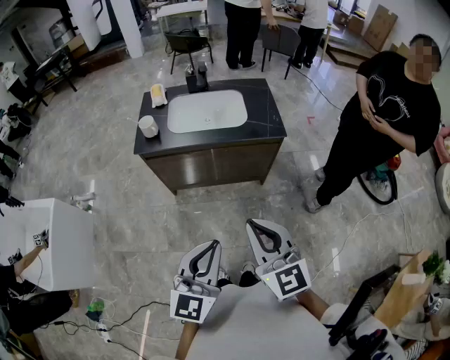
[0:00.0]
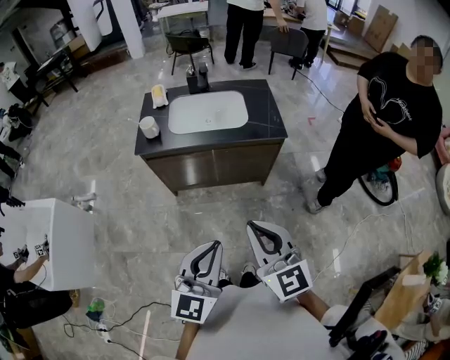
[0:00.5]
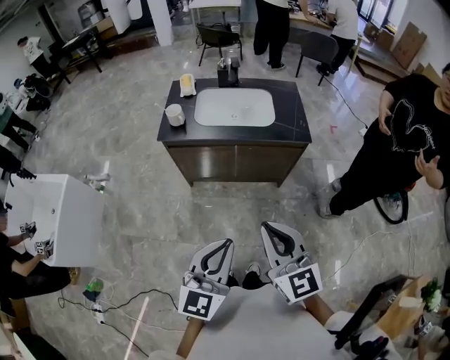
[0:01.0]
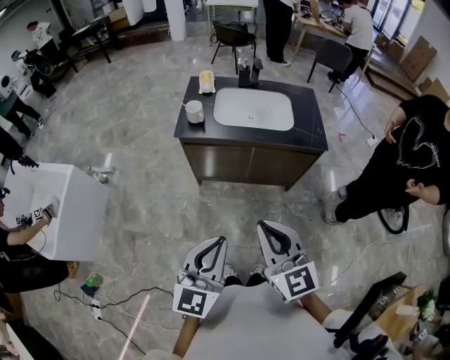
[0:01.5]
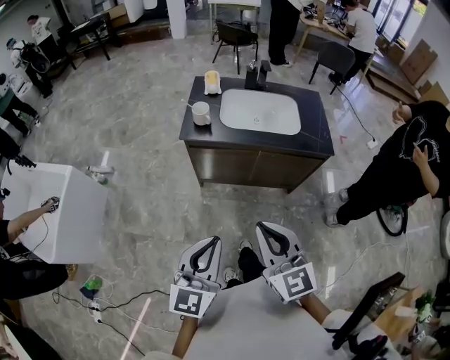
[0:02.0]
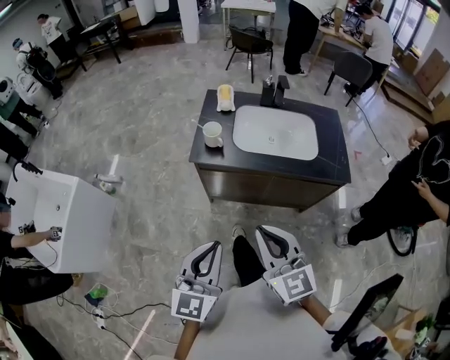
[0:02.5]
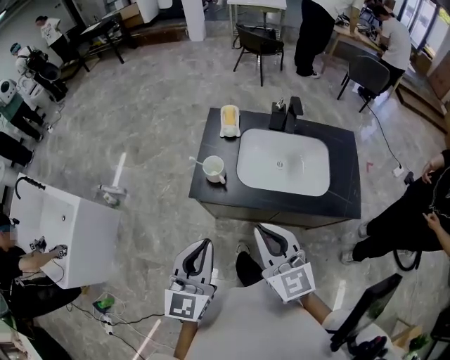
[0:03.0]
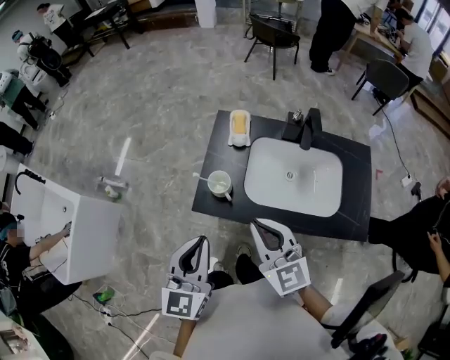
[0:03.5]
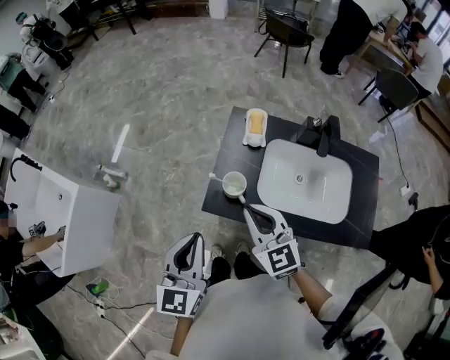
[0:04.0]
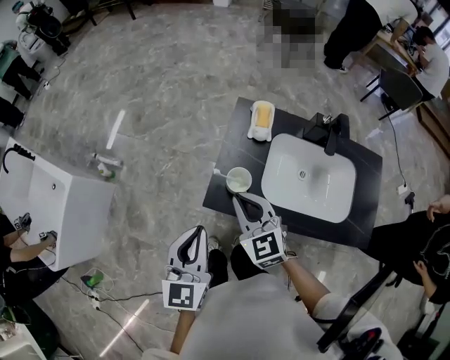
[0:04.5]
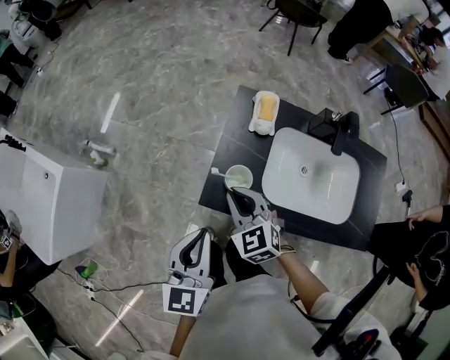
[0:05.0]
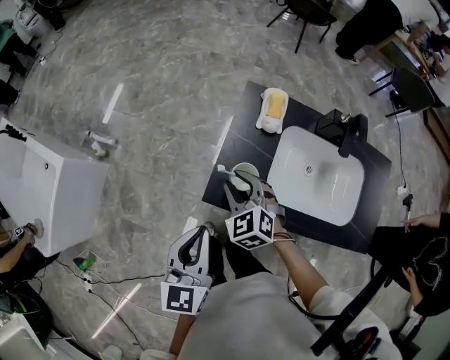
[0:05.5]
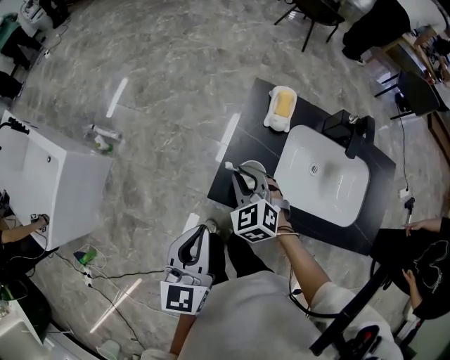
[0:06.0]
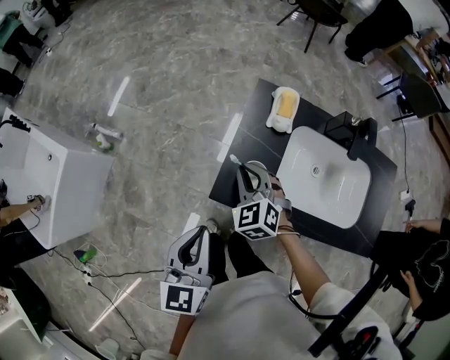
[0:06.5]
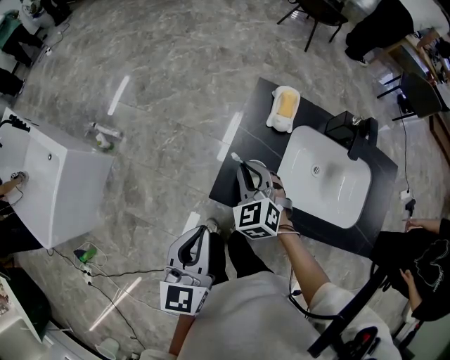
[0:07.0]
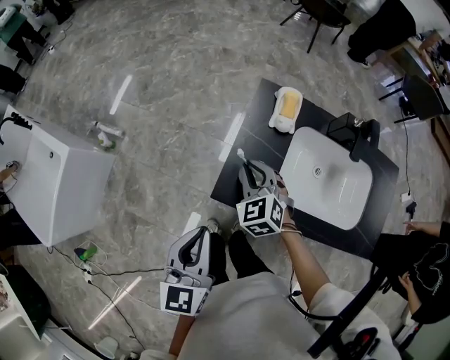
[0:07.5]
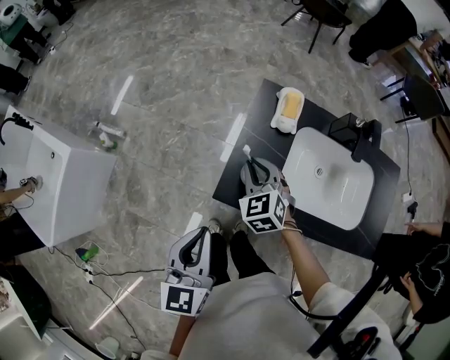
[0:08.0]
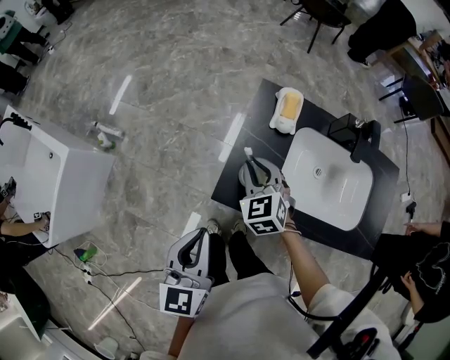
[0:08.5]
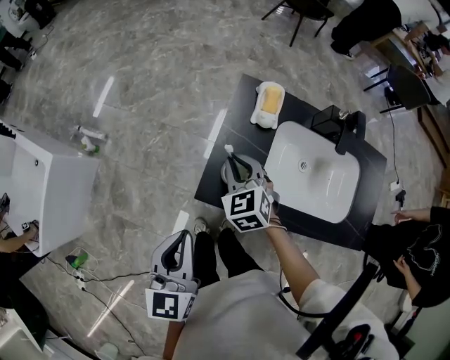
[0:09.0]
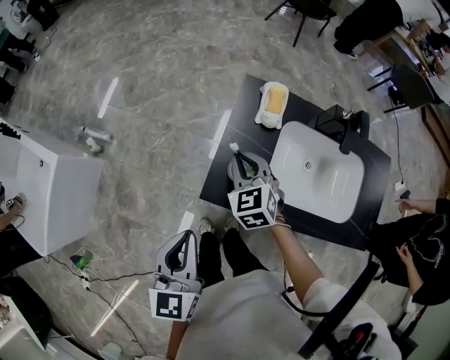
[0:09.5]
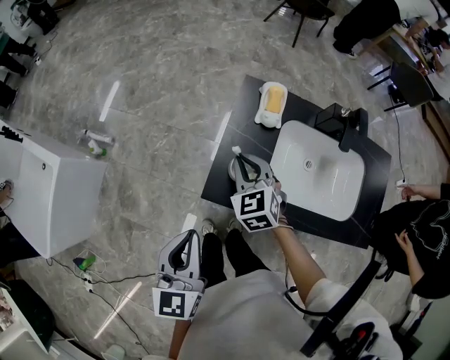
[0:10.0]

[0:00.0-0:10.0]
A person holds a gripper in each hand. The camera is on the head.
0:00.0 to 0:02.0: The grippers both shift to the left by roughly 15 cm.
0:02.0 to 0:04.0: The grippers both shift forward by roughly 40 cm.
0:04.0 to 0:06.0: The left gripper ends up some 5 cm from where it was. The right gripper heads downward, forward and to the left, covering roughly 15 cm, and turns by some 30 degrees.
0:06.0 to 0:10.0: There are only small adjustments of the grippers.

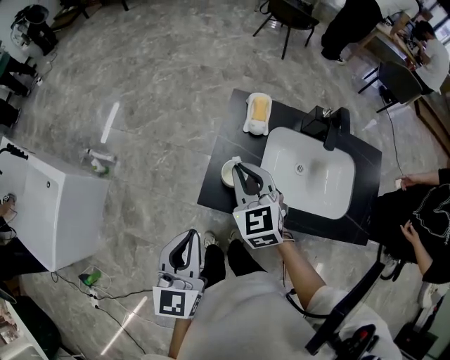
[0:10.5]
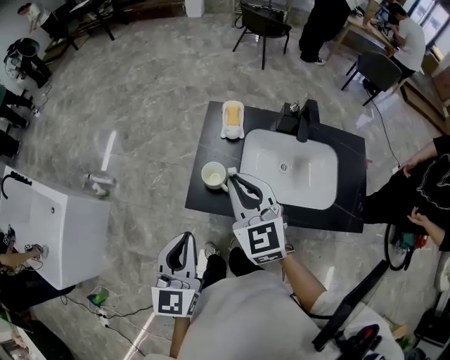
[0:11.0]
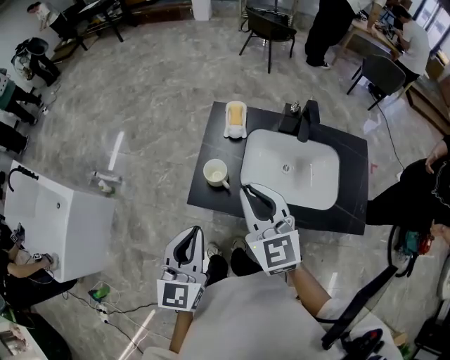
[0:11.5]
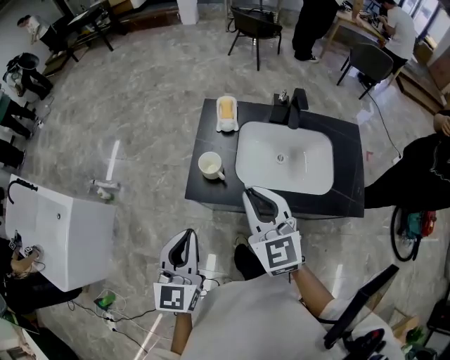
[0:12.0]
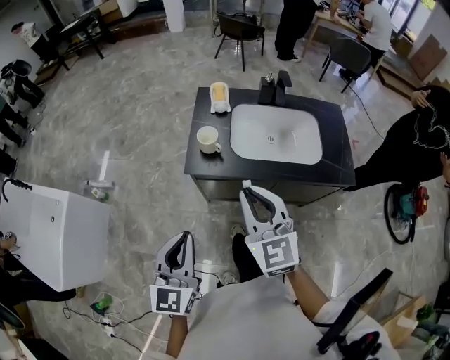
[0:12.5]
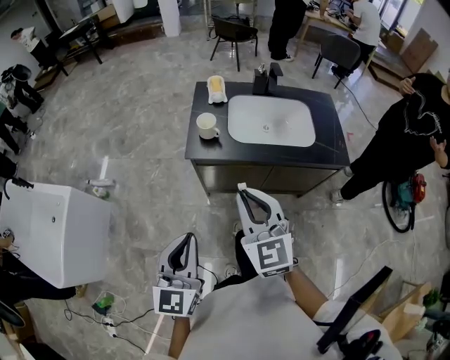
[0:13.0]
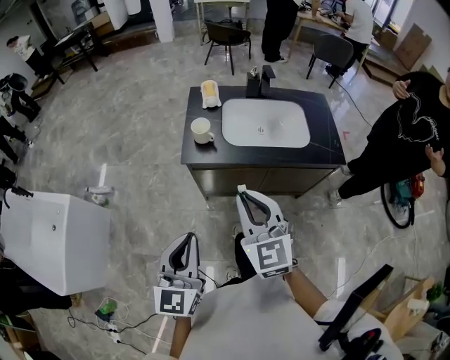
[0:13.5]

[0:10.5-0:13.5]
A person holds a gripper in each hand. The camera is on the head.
0:10.5 to 0:12.0: The left gripper moves backward, approximately 5 cm. The right gripper moves backward, to the right and upward, roughly 20 cm.
0:12.0 to 0:13.5: Both grippers travel together backward, about 20 cm.

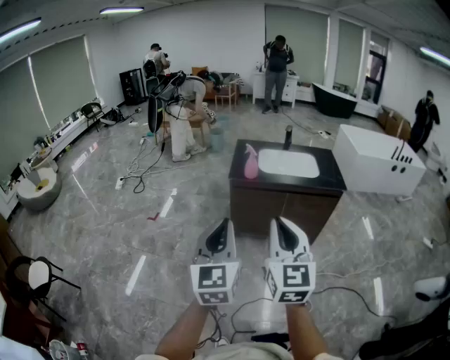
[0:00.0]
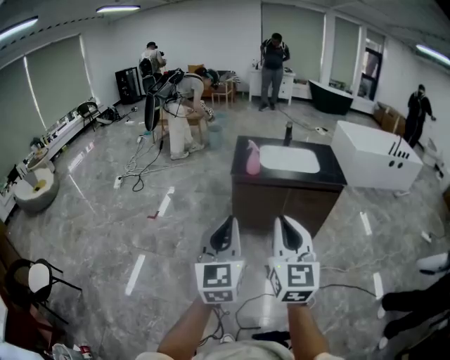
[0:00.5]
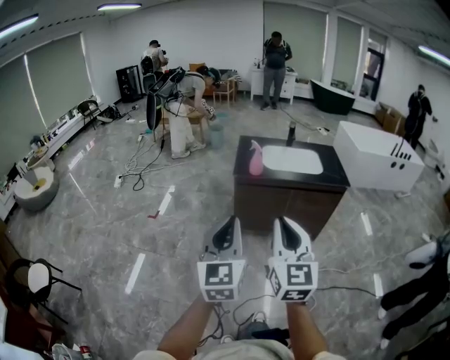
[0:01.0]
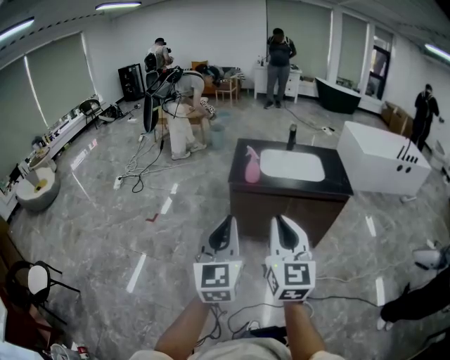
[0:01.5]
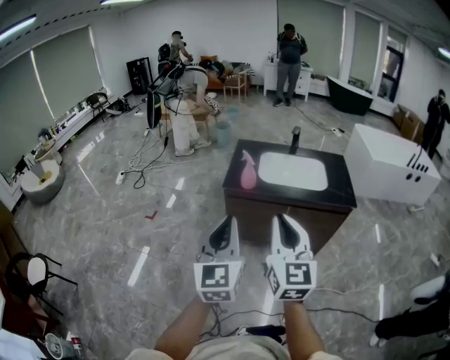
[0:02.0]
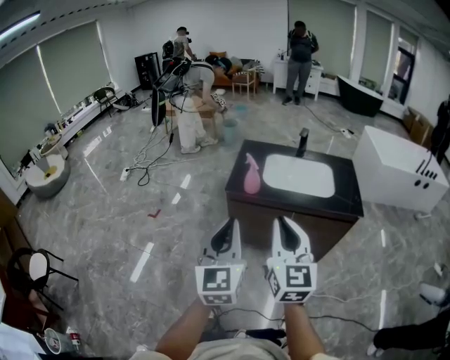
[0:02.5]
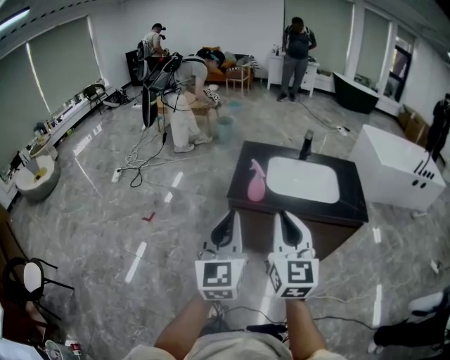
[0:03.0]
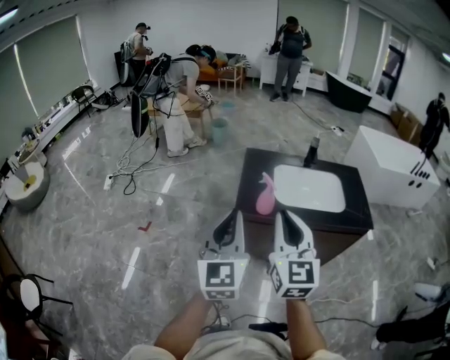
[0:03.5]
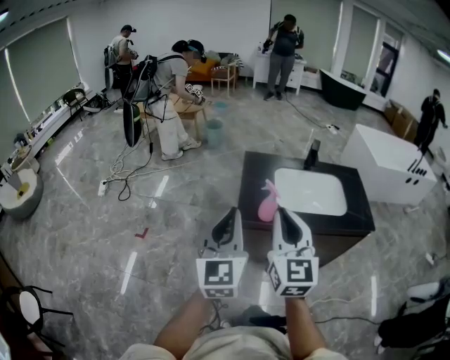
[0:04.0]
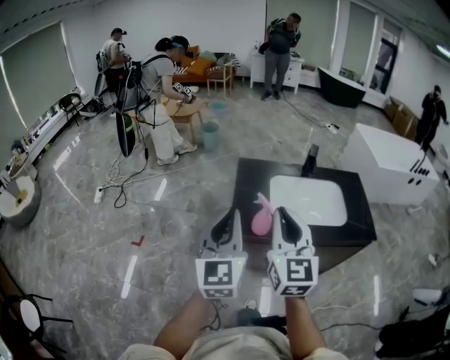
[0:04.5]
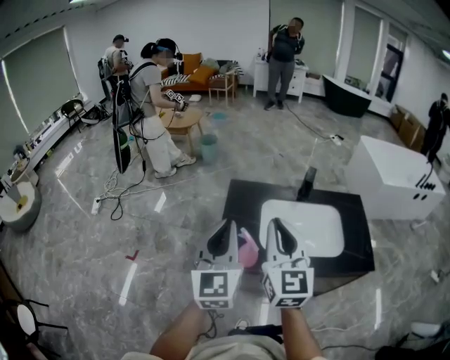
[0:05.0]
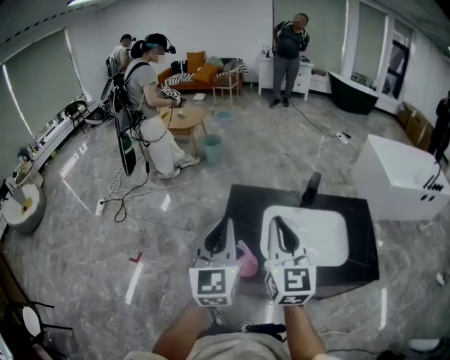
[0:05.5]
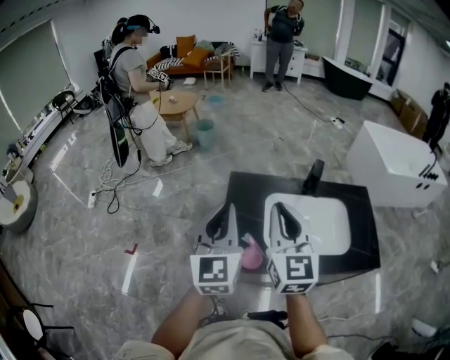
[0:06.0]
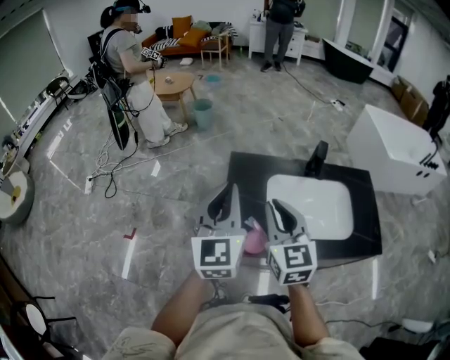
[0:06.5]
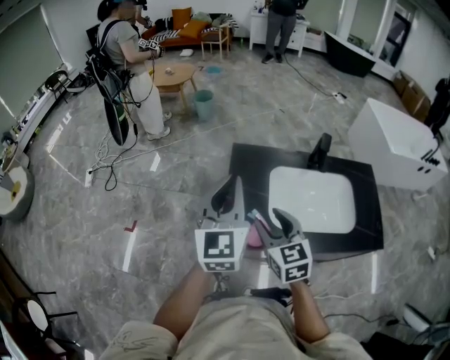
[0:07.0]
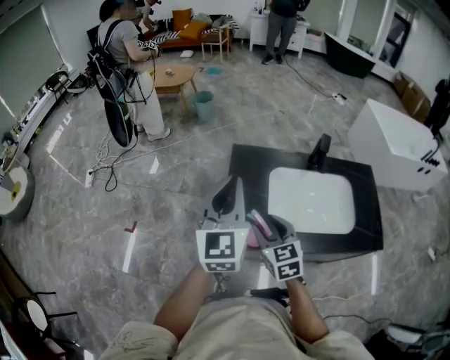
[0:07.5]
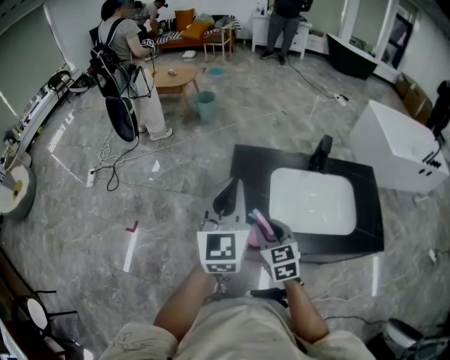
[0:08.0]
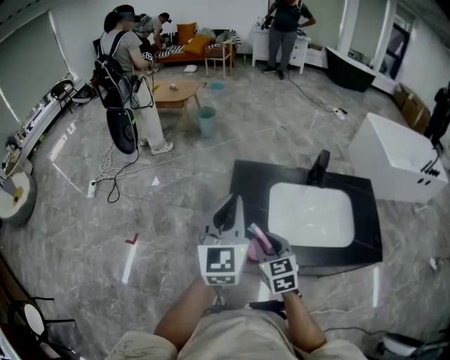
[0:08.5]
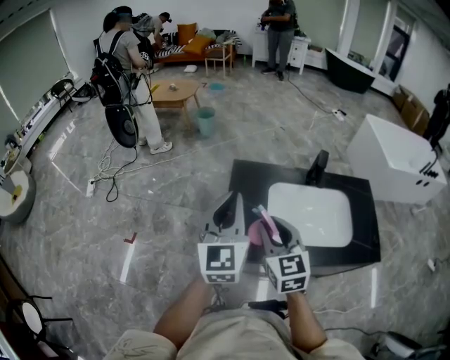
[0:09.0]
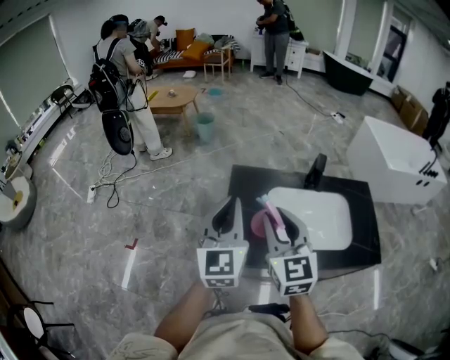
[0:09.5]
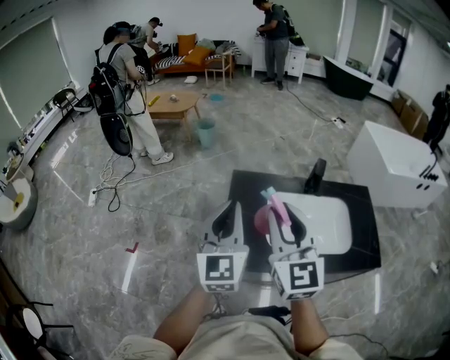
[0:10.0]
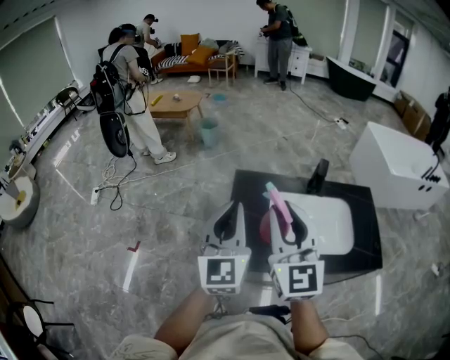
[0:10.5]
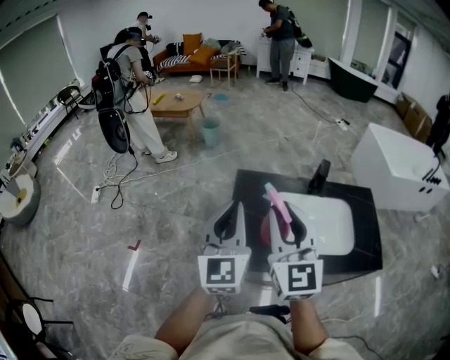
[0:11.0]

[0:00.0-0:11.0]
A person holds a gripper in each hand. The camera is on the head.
0:00.0 to 0:02.0: The grippers both shift forward and to the right by some 20 cm.
0:02.0 to 0:03.5: The two grippers go approximately 25 cm forward and to the left.
0:03.5 to 0:05.5: Both grippers move forward, approximately 25 cm.
0:05.5 to 0:07.5: The right gripper shifts approximately 20 cm downward, points its fingers some 30 degrees further downward, and opens up; the left gripper is displaced forward by some 5 cm.
0:07.5 to 0:09.0: The right gripper goes some 10 cm upward, and closes its fingers.
0:09.0 to 0:11.0: The right gripper is displaced upward by approximately 15 cm, and turns by about 20 degrees.

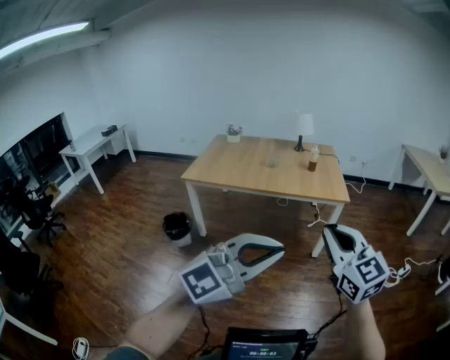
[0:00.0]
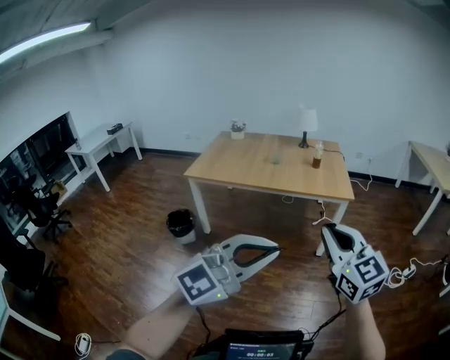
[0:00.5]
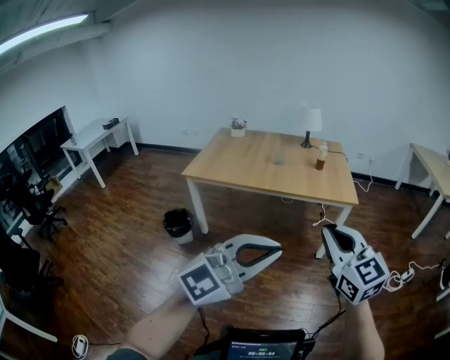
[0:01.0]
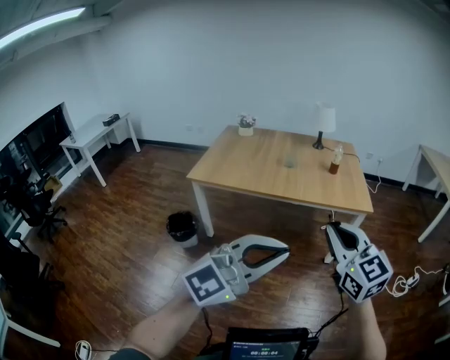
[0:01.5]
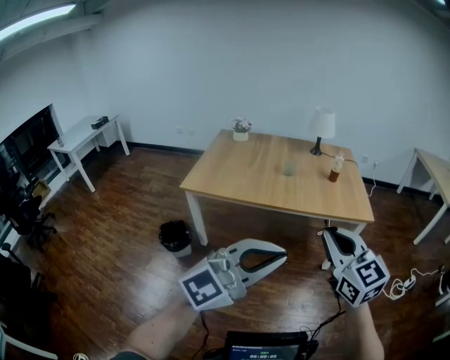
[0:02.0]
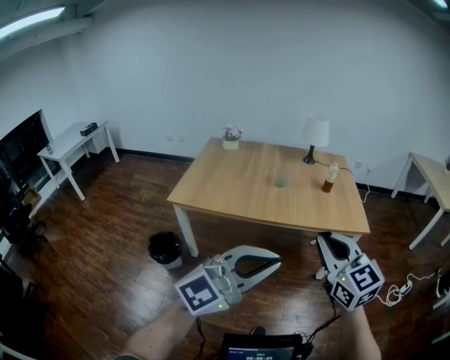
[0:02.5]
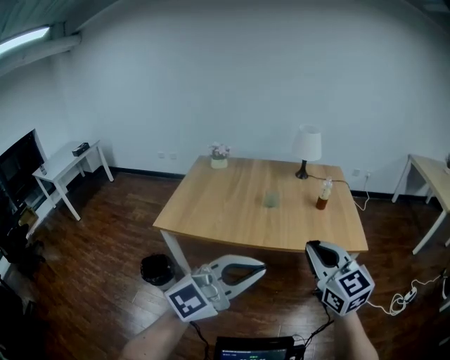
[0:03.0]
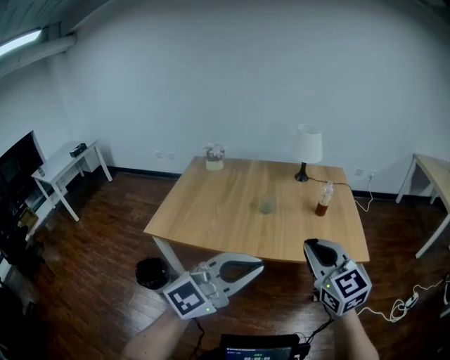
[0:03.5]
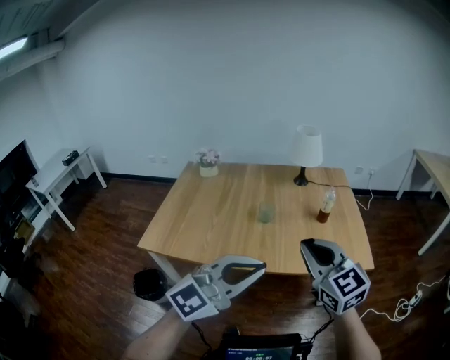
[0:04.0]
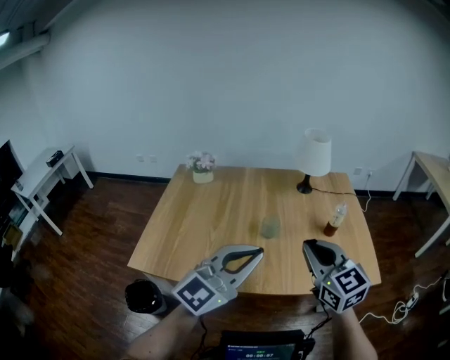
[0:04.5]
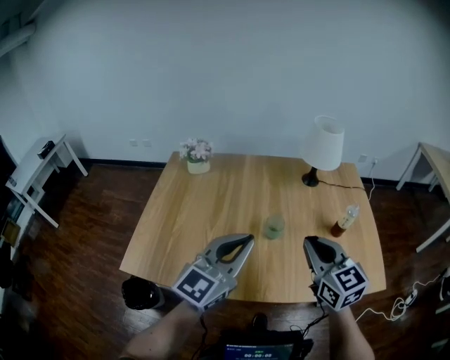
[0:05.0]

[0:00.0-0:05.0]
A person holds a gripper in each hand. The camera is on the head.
0:00.0 to 0:02.5: Both grippers move forward and to the left, about 30 cm.
0:02.5 to 0:05.0: Both grippers are carried forward, approximately 50 cm. The left gripper turns by about 30 degrees.
